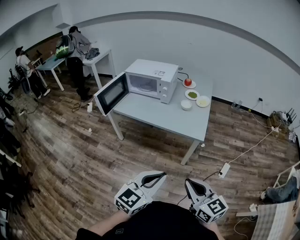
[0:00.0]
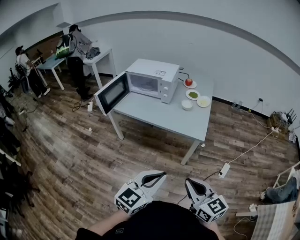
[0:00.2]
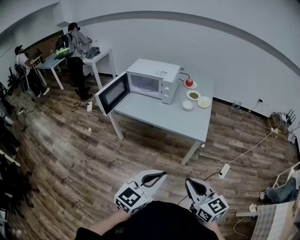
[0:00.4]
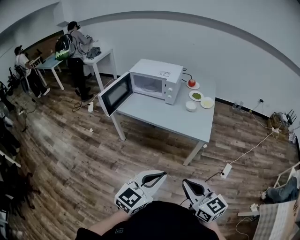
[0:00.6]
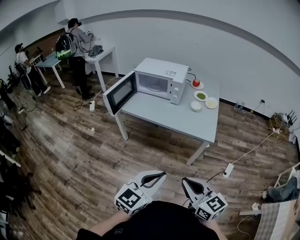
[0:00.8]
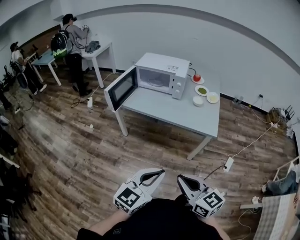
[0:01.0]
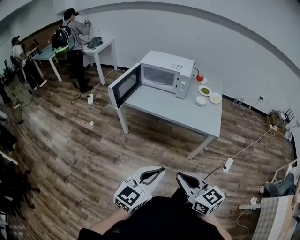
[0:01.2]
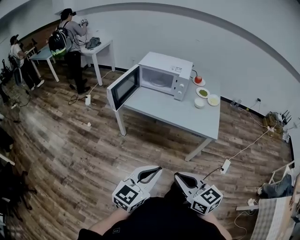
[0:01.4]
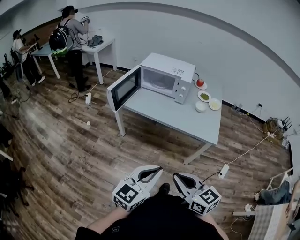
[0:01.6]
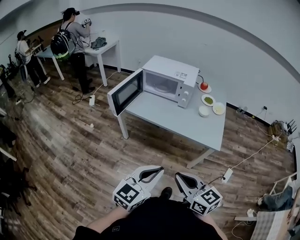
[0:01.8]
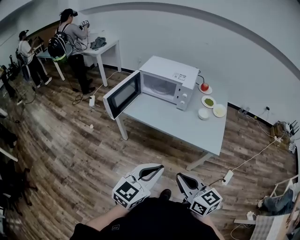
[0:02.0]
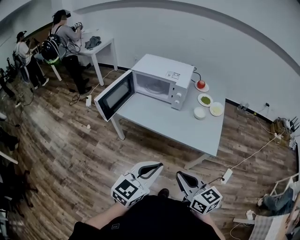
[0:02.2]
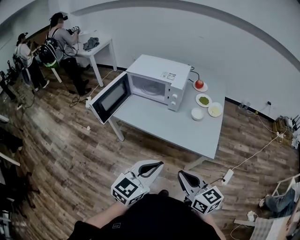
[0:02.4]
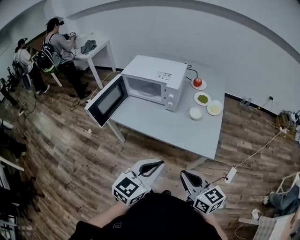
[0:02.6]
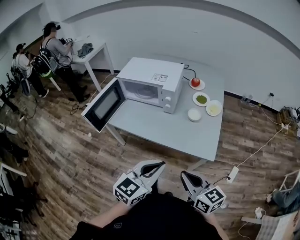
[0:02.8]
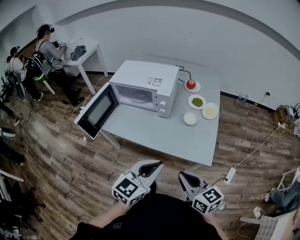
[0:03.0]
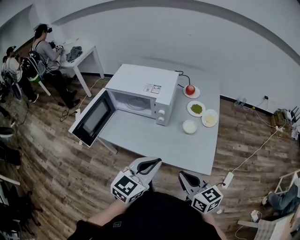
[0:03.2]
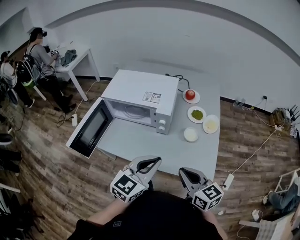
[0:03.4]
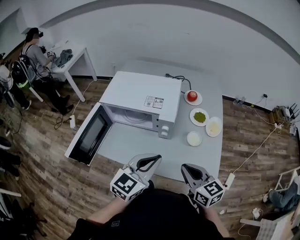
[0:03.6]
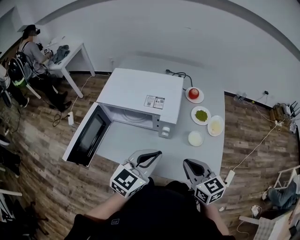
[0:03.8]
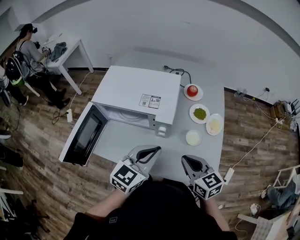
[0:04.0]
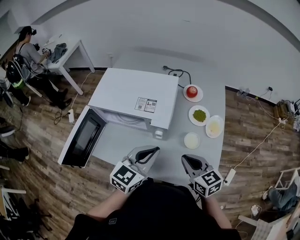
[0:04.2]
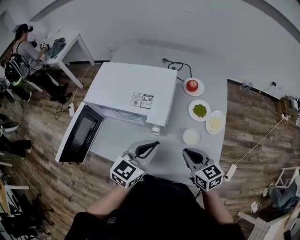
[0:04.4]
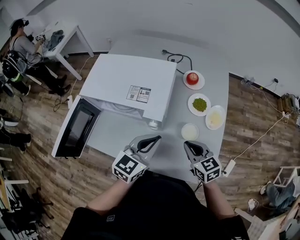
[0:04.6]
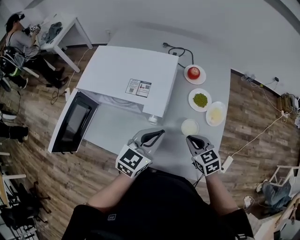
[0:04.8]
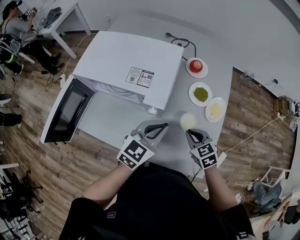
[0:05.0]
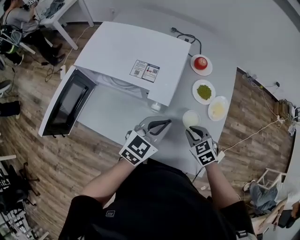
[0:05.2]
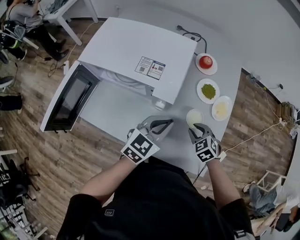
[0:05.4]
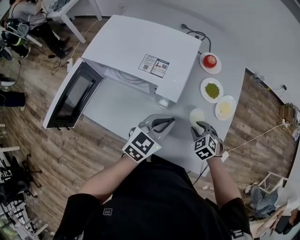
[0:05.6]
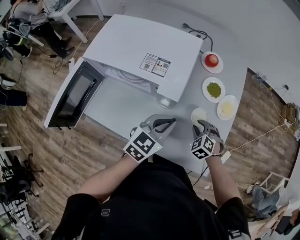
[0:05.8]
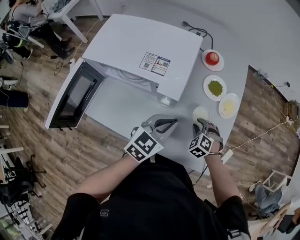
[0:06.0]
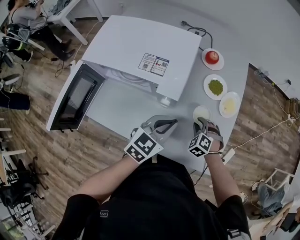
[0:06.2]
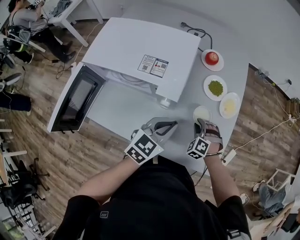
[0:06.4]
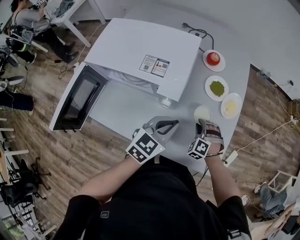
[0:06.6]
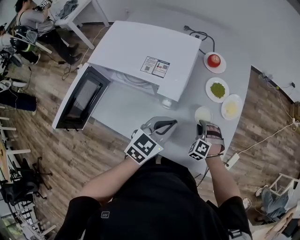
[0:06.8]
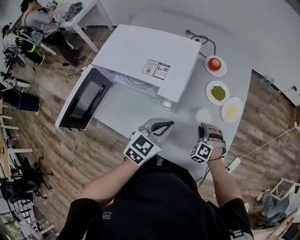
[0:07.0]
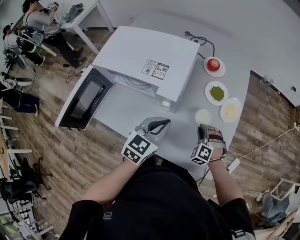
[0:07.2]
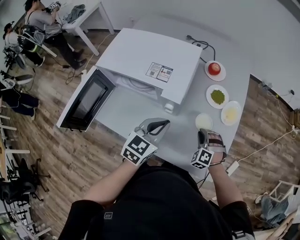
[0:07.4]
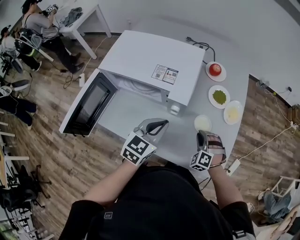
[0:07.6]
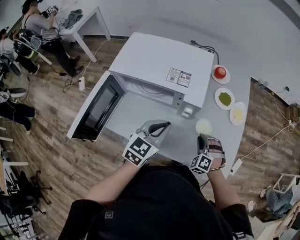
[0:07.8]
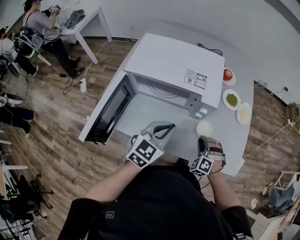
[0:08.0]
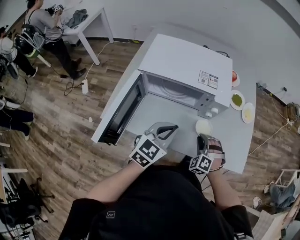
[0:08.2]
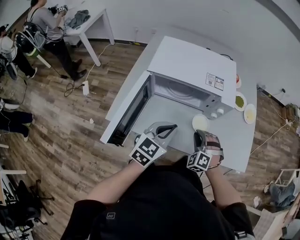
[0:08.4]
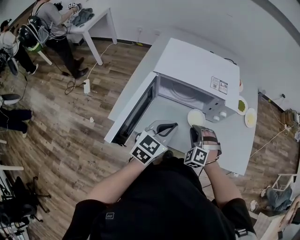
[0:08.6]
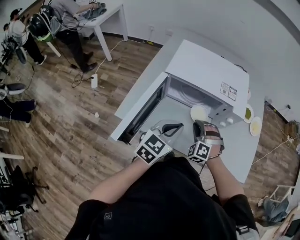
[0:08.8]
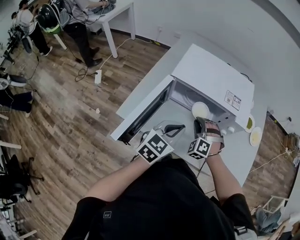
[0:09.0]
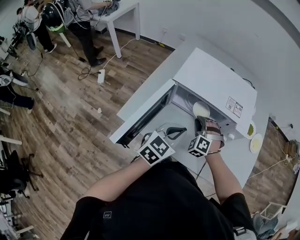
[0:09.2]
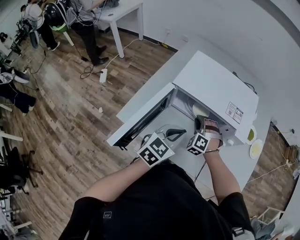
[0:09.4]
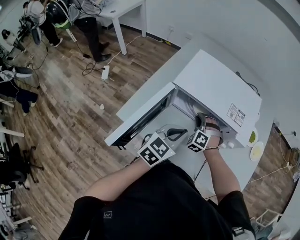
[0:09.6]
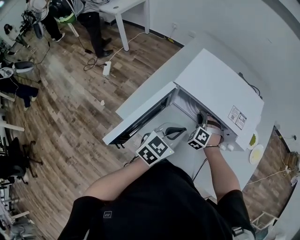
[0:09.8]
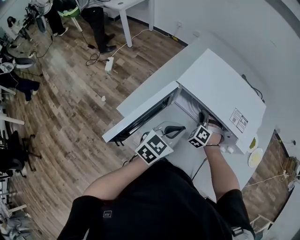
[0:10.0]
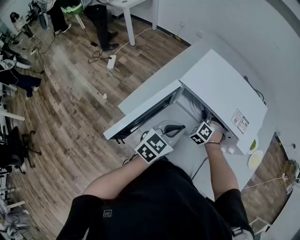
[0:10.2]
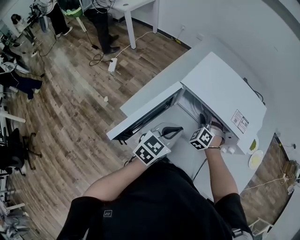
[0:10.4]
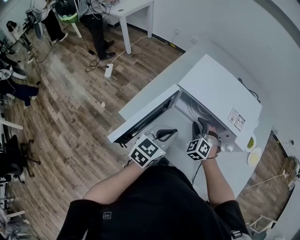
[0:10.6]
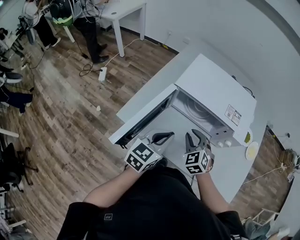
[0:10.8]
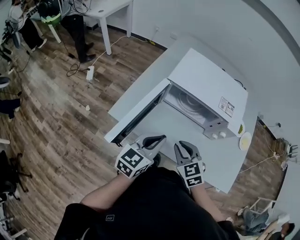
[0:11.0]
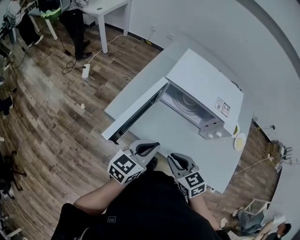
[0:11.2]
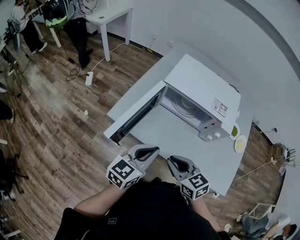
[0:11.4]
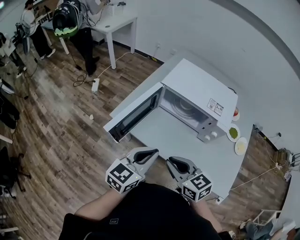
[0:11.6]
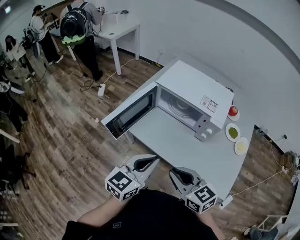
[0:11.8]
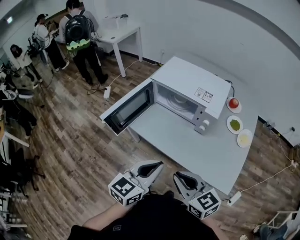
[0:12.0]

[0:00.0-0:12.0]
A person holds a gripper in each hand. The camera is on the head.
0:00.0 to 0:01.6: Both grippers travel together to the left, roughly 20 cm.
0:01.6 to 0:03.0: The two grippers go roughly 30 cm forward and to the right.
0:03.0 to 0:04.4: The two grippers go about 30 cm forward.
0:04.4 to 0:06.0: The left gripper is displaced downward by roughly 10 cm. The right gripper travels downward by about 20 cm, angles its fingers downward, by some 30 degrees, and opens up.
0:06.0 to 0:07.6: The right gripper changes place by roughly 5 cm, while the left gripper moves to the left, approximately 5 cm.
0:07.6 to 0:09.0: The left gripper heads to the left and backward, covering roughly 25 cm. Meanwhile the right gripper shifts some 35 cm to the left.
0:09.0 to 0:10.4: The right gripper shifts some 10 cm forward.
0:10.4 to 0:12.0: The left gripper moves roughly 30 cm, while the right gripper moves about 50 cm, and rotates approximately 80 degrees.

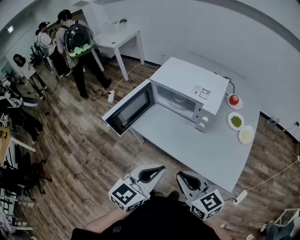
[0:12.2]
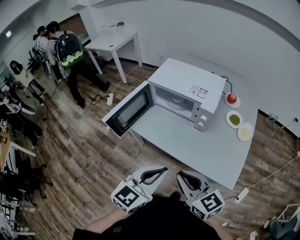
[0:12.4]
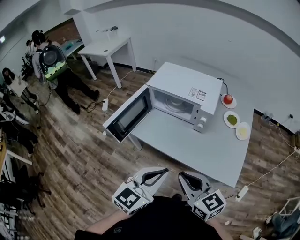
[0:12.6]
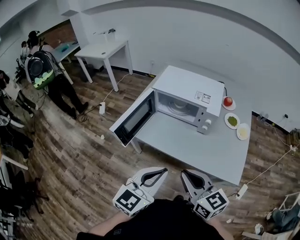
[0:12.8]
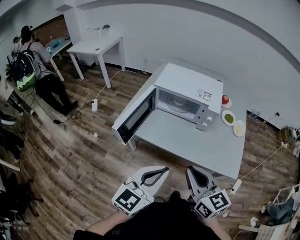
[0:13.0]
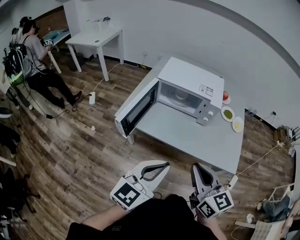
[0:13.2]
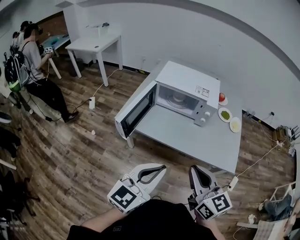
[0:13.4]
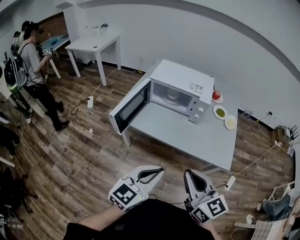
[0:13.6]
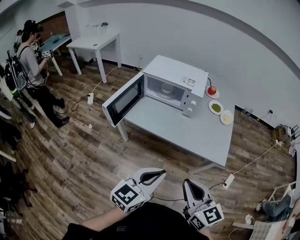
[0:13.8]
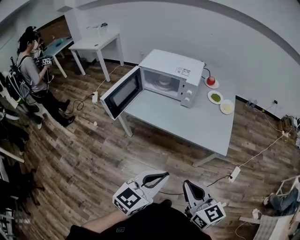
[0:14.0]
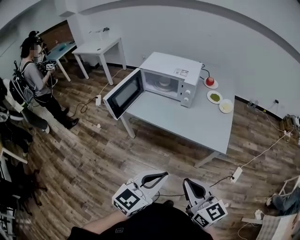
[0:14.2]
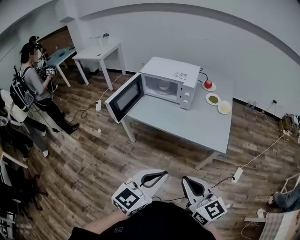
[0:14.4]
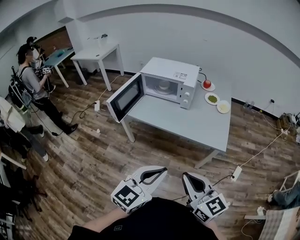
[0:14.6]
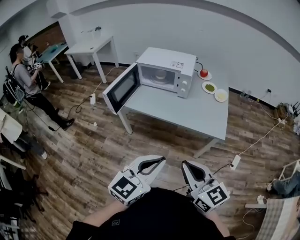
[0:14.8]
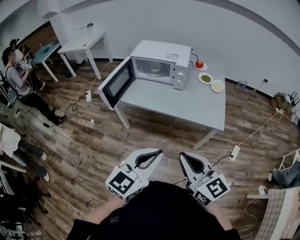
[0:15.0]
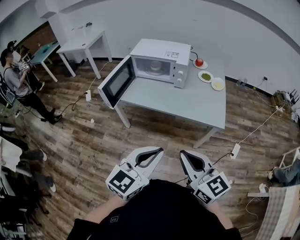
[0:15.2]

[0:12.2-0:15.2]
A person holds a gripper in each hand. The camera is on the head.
0:12.2 to 0:13.8: The two grippers go roughly 15 cm backward. The right gripper rotates approximately 20 degrees.
0:13.8 to 0:15.2: Both grippers travel together backward, approximately 10 cm.

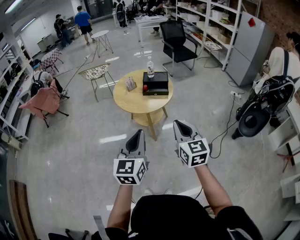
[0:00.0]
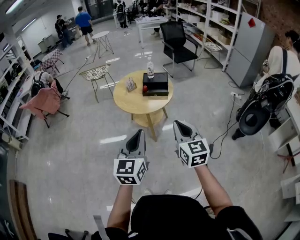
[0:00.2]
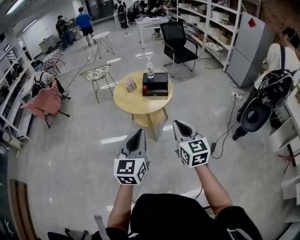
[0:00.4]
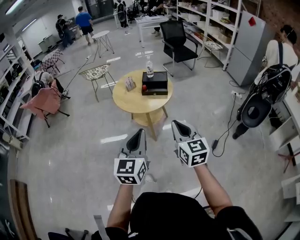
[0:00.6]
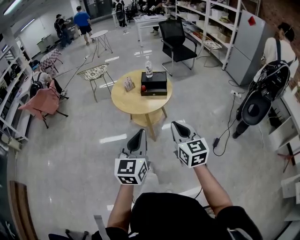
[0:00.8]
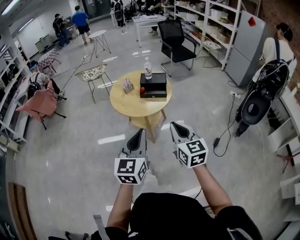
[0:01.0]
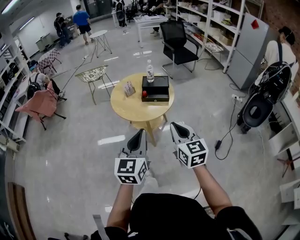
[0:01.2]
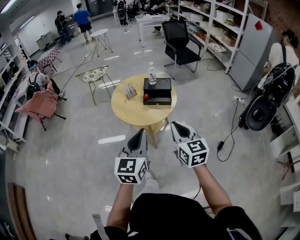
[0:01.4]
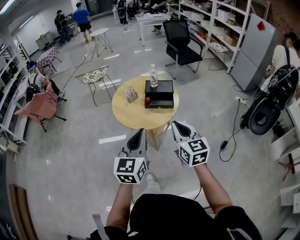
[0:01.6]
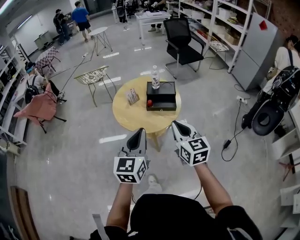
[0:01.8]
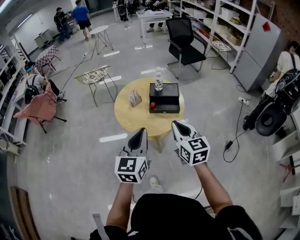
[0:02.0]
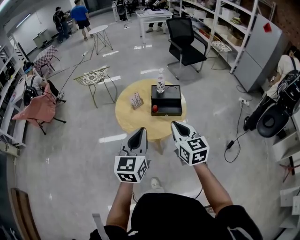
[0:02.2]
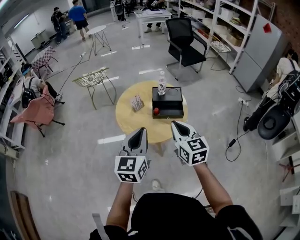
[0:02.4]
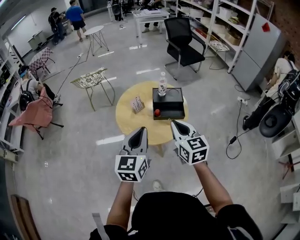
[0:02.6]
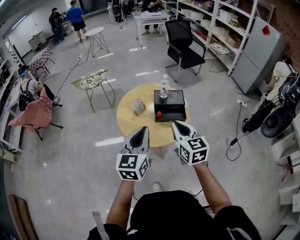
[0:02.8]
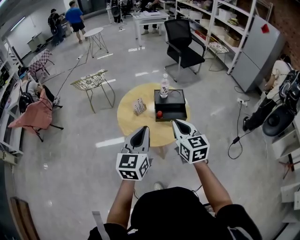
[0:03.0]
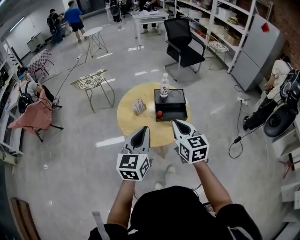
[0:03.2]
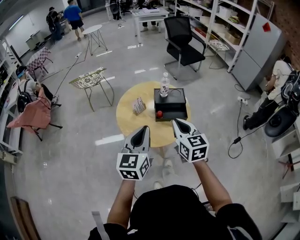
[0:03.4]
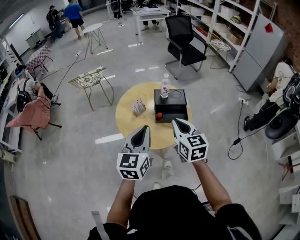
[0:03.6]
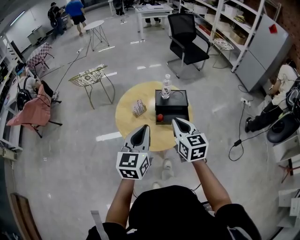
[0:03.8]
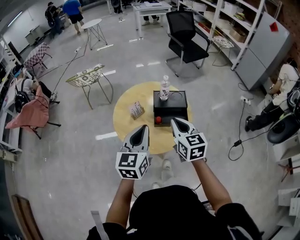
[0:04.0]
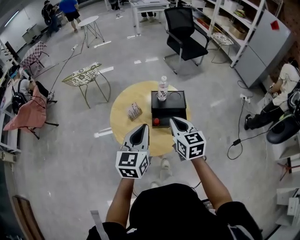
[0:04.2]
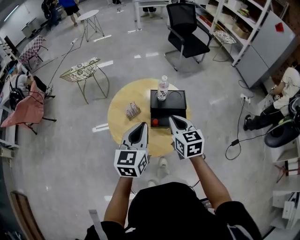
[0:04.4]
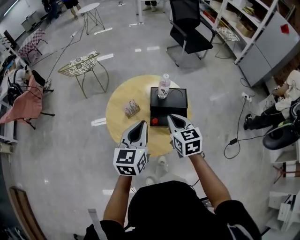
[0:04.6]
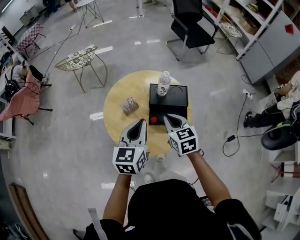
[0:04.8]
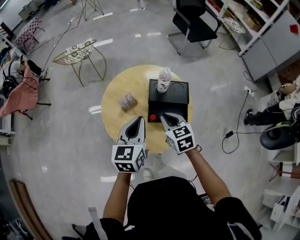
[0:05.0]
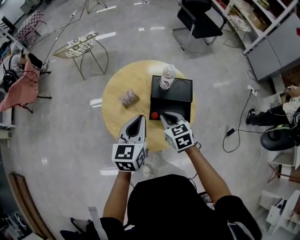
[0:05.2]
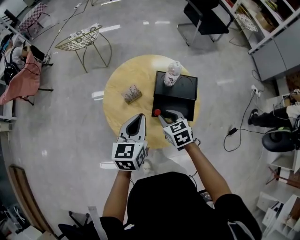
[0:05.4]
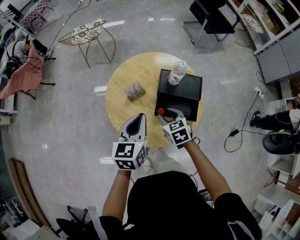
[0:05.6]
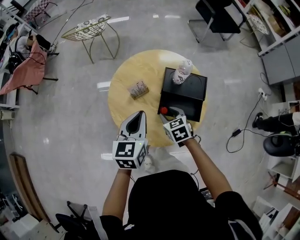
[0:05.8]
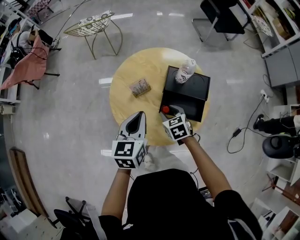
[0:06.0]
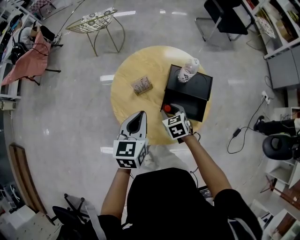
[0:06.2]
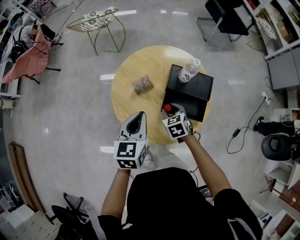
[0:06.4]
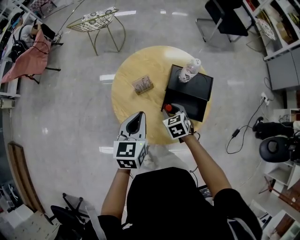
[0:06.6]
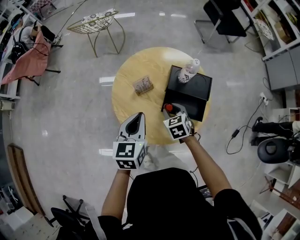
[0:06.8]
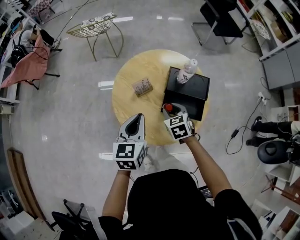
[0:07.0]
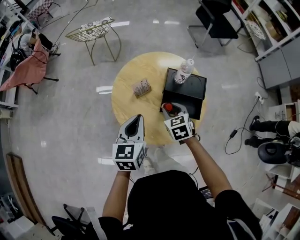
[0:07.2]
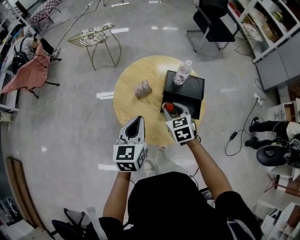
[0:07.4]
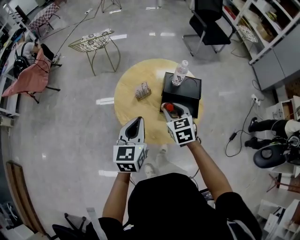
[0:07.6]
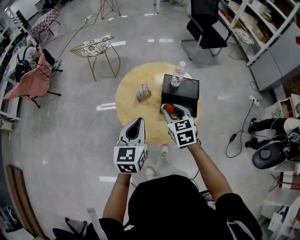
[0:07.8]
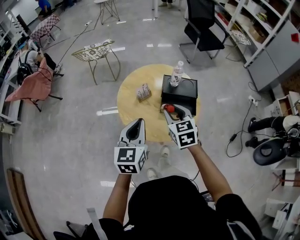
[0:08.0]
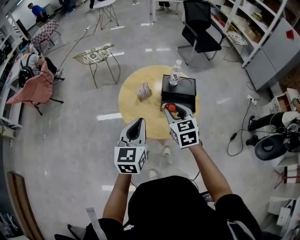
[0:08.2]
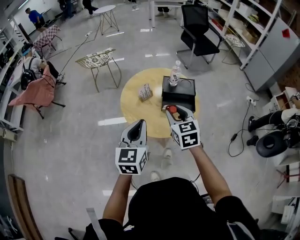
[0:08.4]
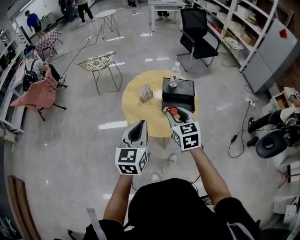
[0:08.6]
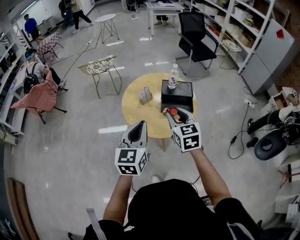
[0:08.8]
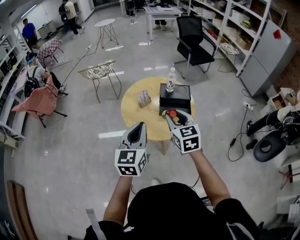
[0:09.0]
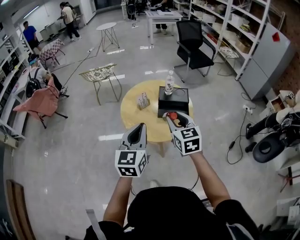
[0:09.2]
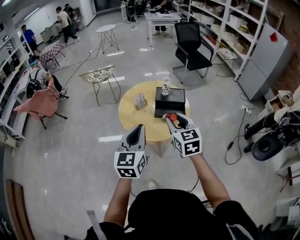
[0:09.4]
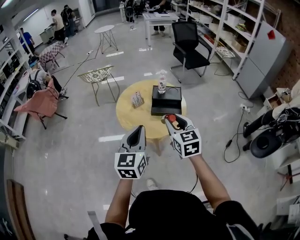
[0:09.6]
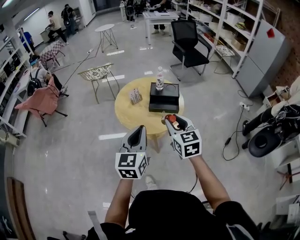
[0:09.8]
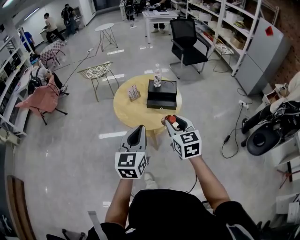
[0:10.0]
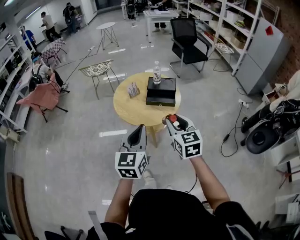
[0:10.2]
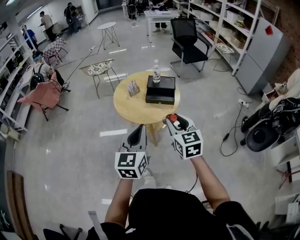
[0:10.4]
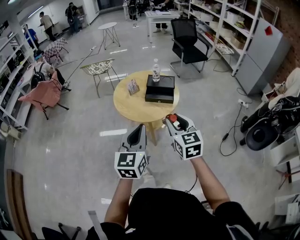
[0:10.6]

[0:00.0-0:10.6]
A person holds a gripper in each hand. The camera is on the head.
0:00.0 to 0:01.6: Both grippers move forward, roughly 20 cm.
0:01.6 to 0:03.0: The two grippers go roughly 20 cm forward and to the left.
0:03.0 to 0:04.6: Both grippers move forward and downward, some 20 cm.
0:04.6 to 0:06.0: The left gripper travels downward and forward by approximately 10 cm. The right gripper shifts roughly 20 cm downward, rotates some 30 degrees, and opens its fingers.
0:06.0 to 0:07.6: The left gripper travels backward by roughly 5 cm; the right gripper heads upward, covering some 15 cm.
0:07.6 to 0:09.0: The two grippers go roughly 20 cm backward and upward.
0:09.0 to 0:10.6: Both grippers move backward and to the right, roughly 25 cm.
